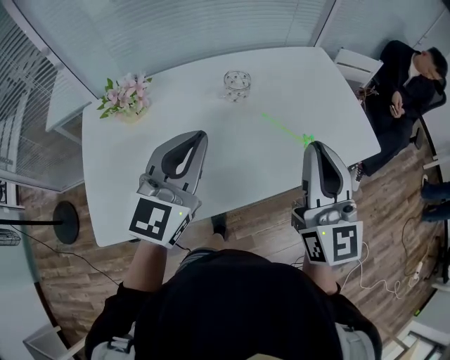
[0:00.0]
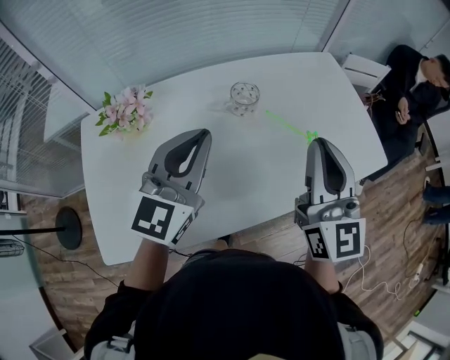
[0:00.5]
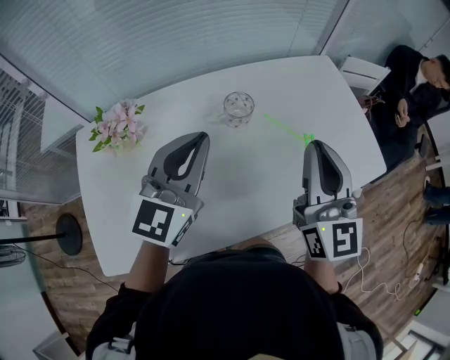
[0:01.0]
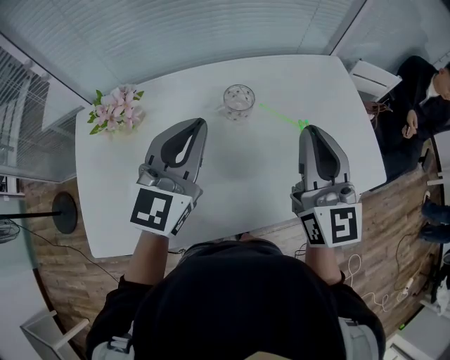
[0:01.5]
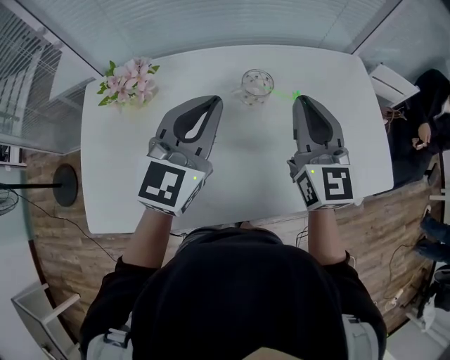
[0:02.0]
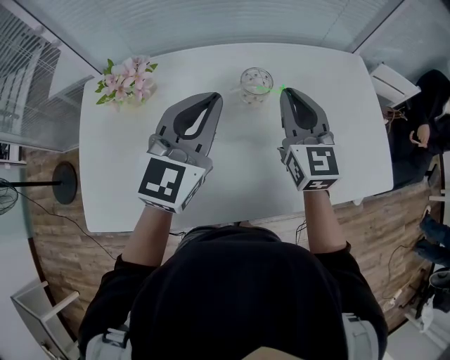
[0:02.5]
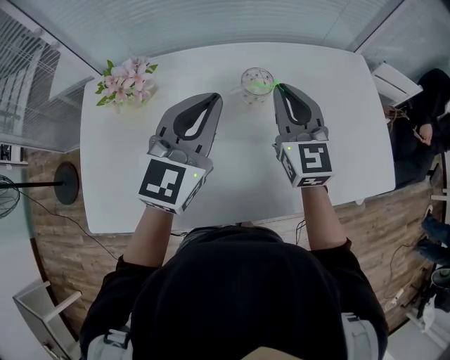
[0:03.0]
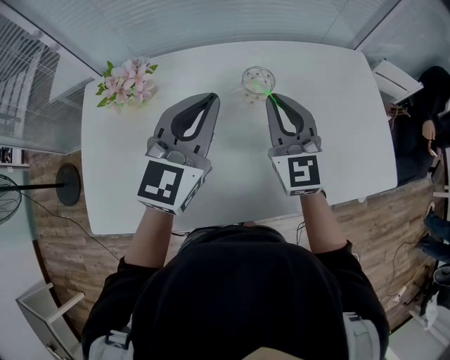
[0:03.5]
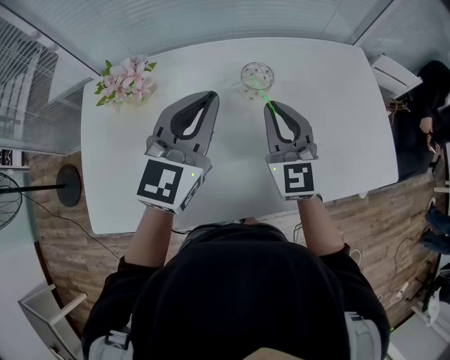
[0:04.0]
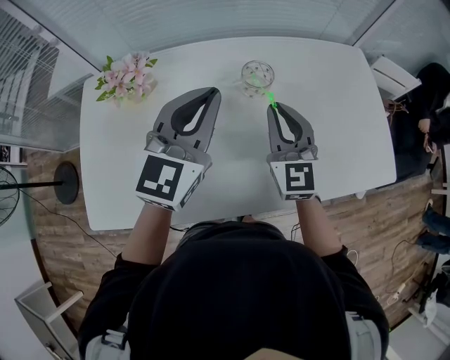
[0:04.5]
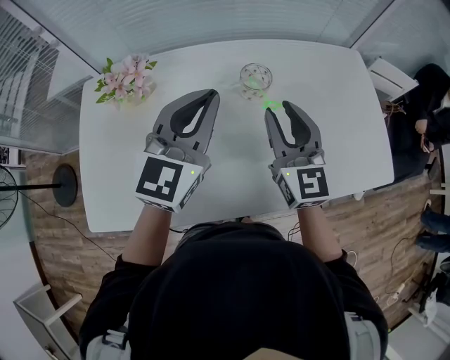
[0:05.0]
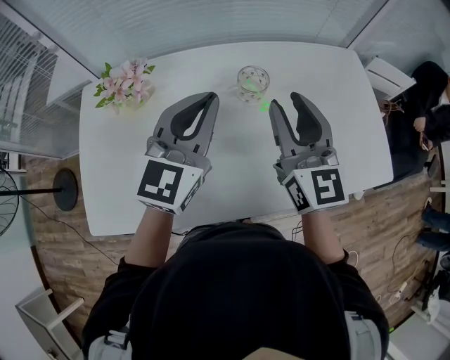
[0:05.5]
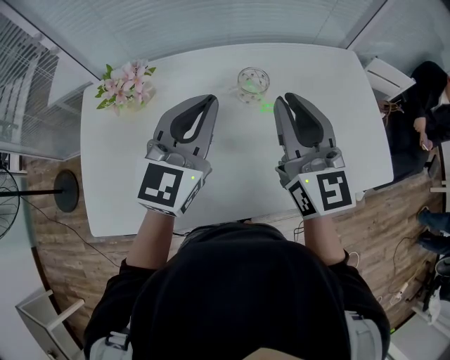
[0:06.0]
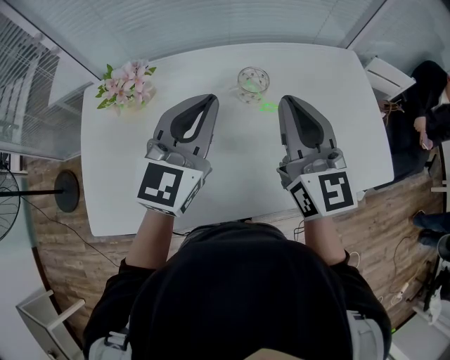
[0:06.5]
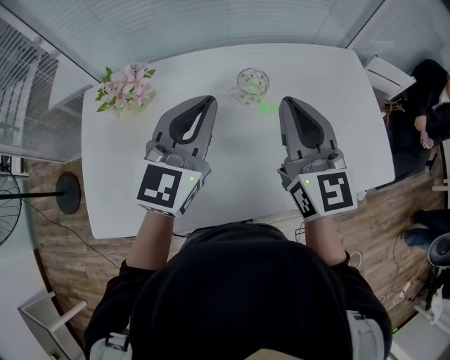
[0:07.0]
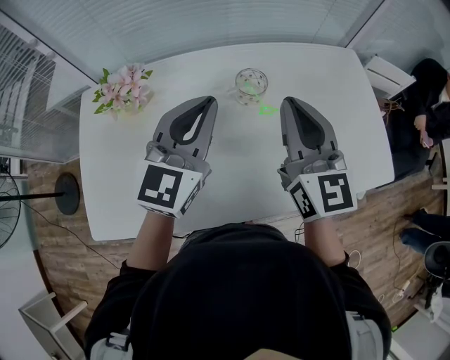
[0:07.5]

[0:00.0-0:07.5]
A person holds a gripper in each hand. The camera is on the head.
0:00.0 to 0:02.0: The right gripper moves forward, some 20 cm. The left gripper moves forward, about 10 cm.
0:02.0 to 0:04.0: The right gripper goes roughly 10 cm downward and to the left.
0:04.0 to 0:05.5: The right gripper heads upward, covering about 10 cm, and opens.
0:05.5 to 0:07.5: The right gripper closes up.

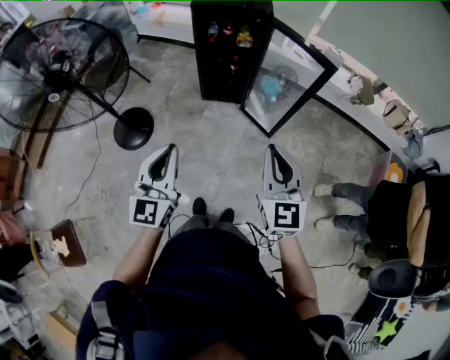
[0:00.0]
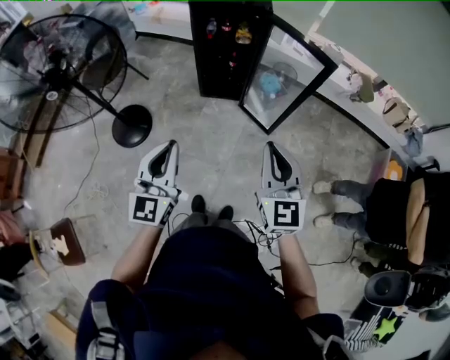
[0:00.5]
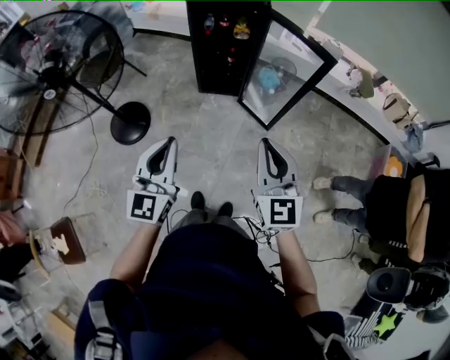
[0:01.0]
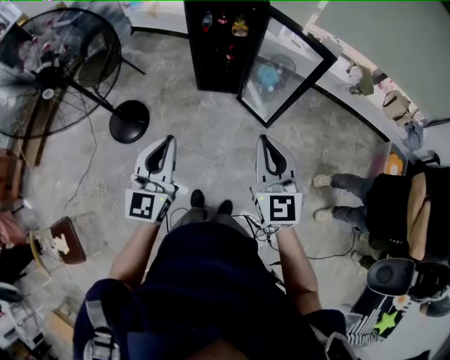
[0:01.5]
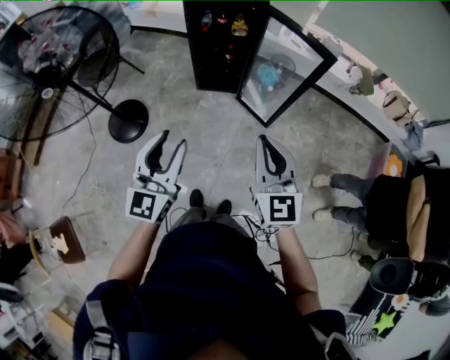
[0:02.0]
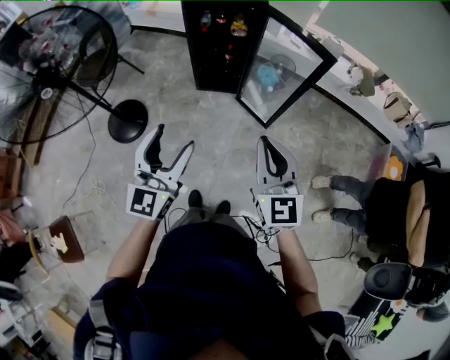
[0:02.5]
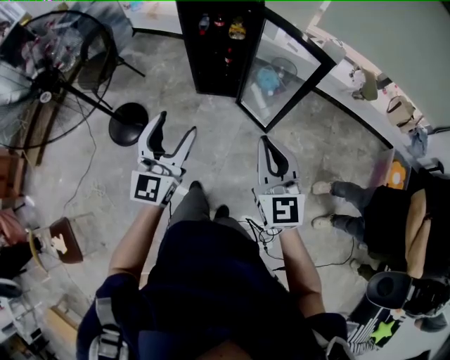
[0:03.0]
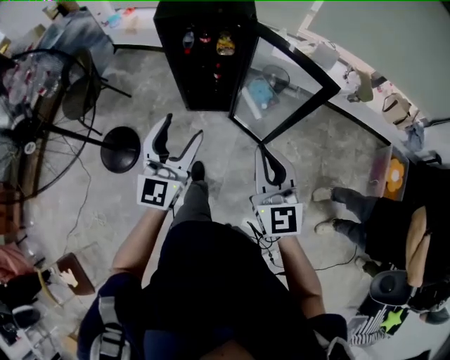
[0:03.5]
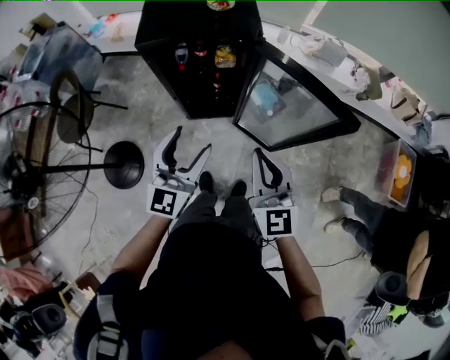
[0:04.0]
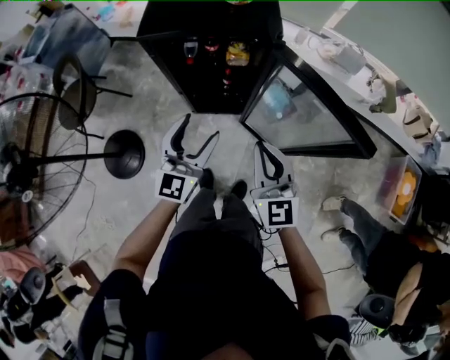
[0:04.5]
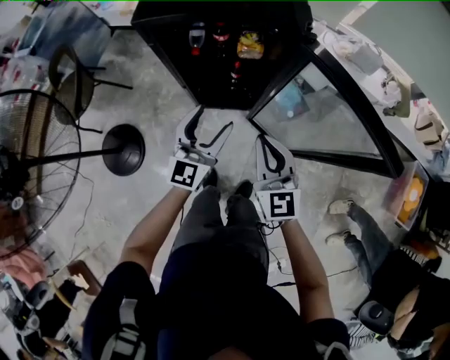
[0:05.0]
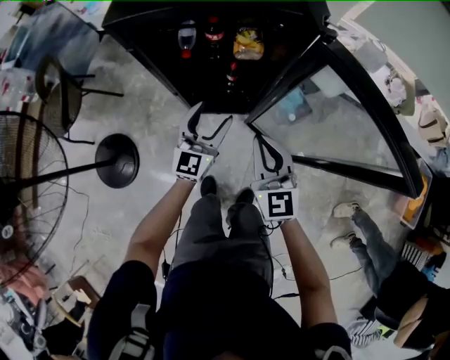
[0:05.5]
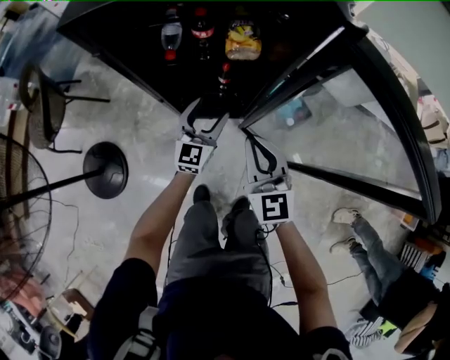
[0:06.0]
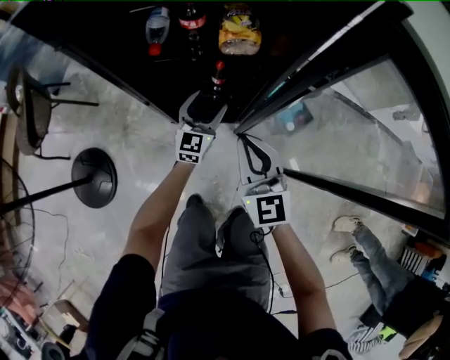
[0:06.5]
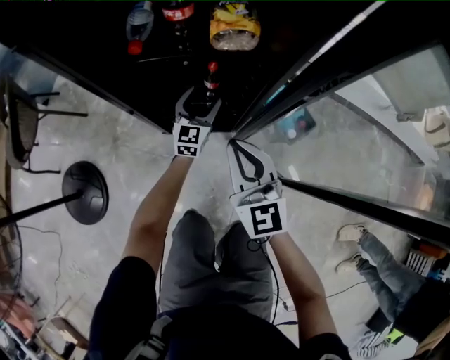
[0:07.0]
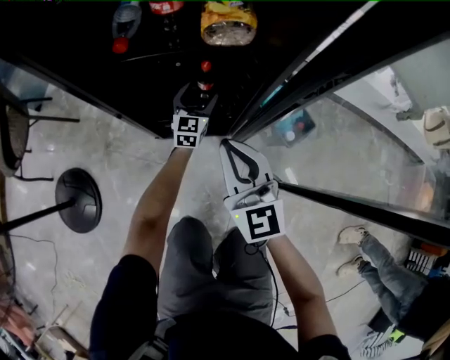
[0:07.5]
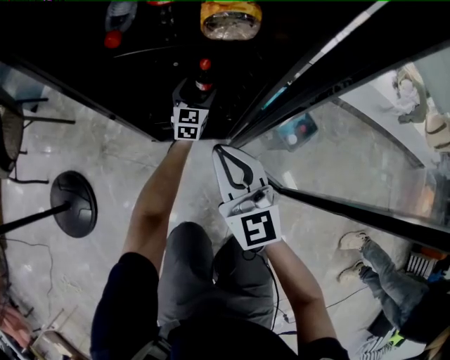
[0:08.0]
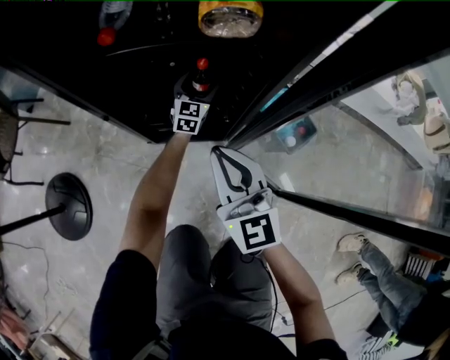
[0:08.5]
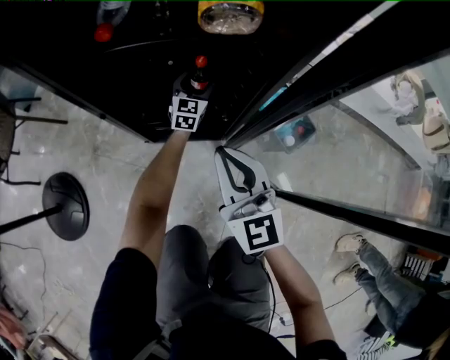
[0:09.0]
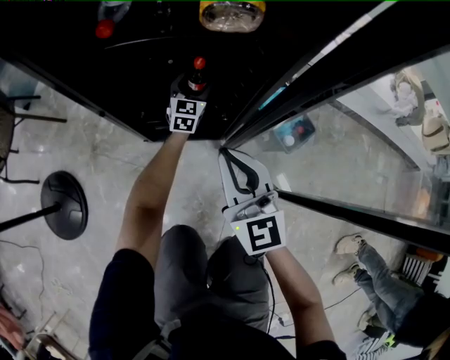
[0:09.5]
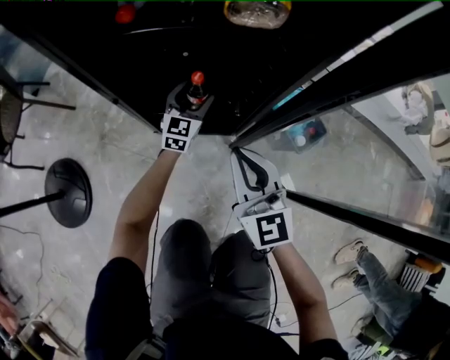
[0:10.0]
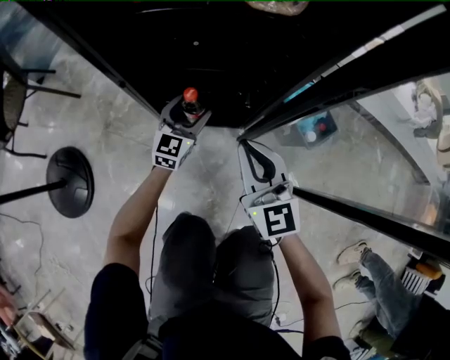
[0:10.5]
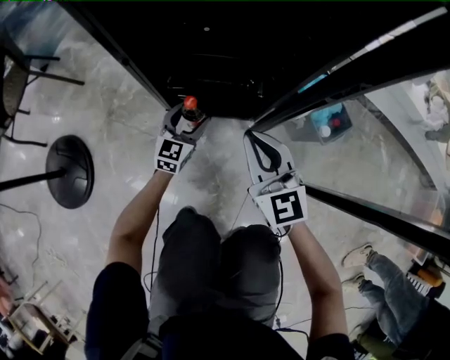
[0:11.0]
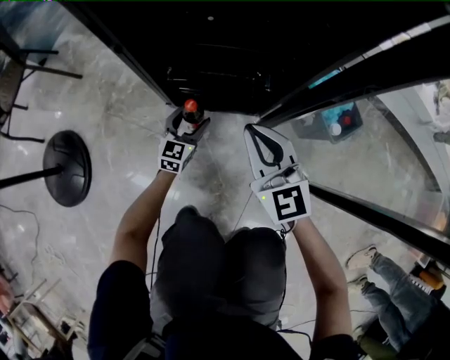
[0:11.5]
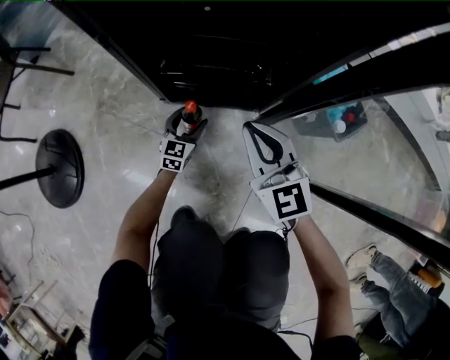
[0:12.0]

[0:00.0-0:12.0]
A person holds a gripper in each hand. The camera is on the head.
0:00.0 to 0:02.0: The grippers stay close to where they were, moving slightly.
0:02.0 to 0:04.0: Both grippers move forward, roughly 40 cm. The left gripper opens up.
0:04.0 to 0:06.0: Both grippers move downward and forward, some 50 cm.
0:06.0 to 0:08.0: The right gripper is displaced downward by some 20 cm; the left gripper shifts some 35 cm downward and forward.
0:08.0 to 0:10.0: The left gripper goes roughly 5 cm backward. Meanwhile the right gripper moves about 5 cm.
0:10.0 to 0:12.0: The right gripper moves downward, roughly 20 cm; the left gripper heads downward and backward, covering some 30 cm.

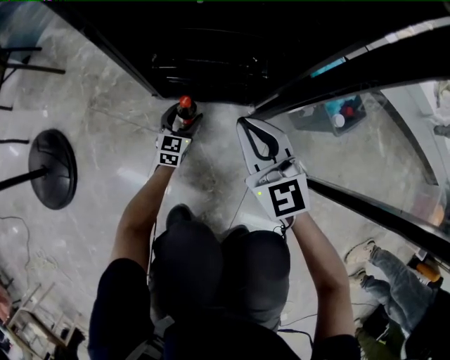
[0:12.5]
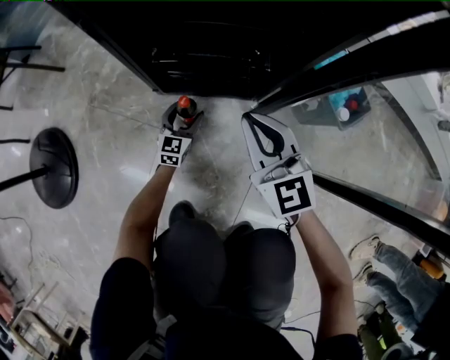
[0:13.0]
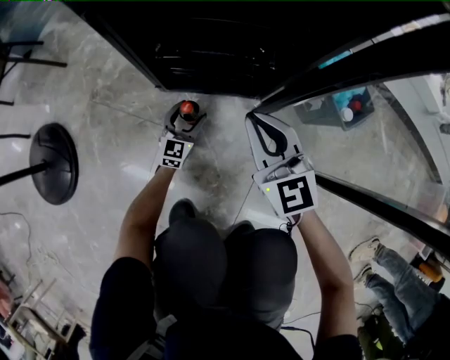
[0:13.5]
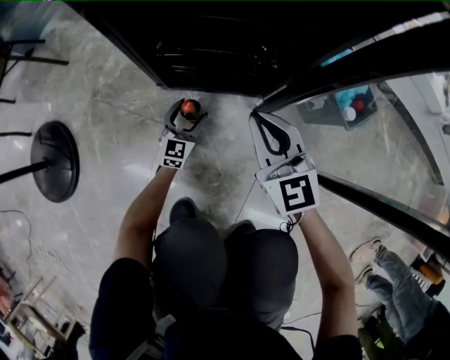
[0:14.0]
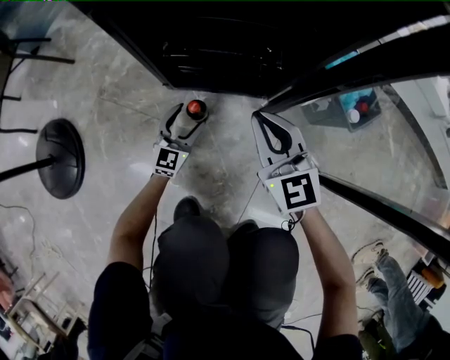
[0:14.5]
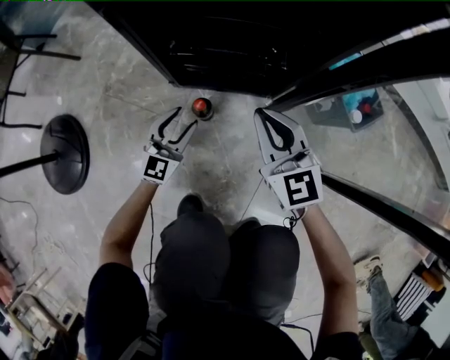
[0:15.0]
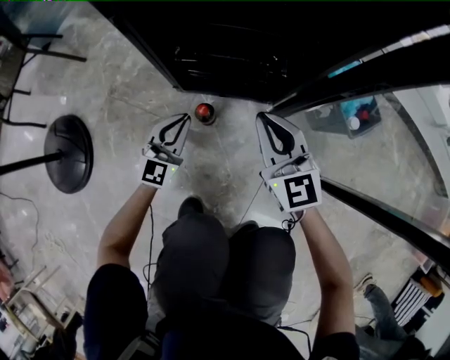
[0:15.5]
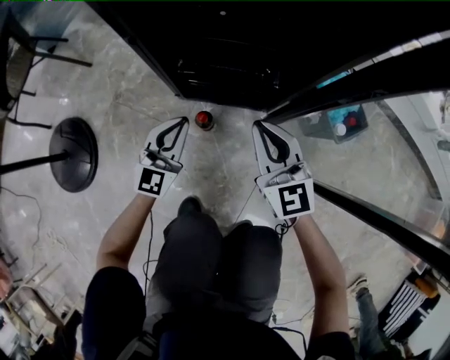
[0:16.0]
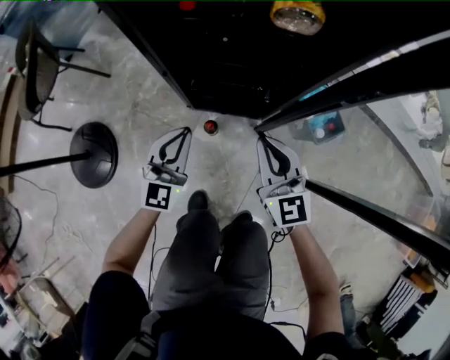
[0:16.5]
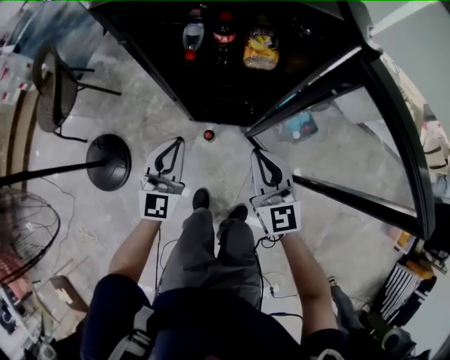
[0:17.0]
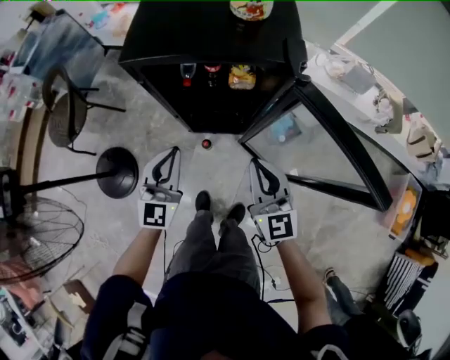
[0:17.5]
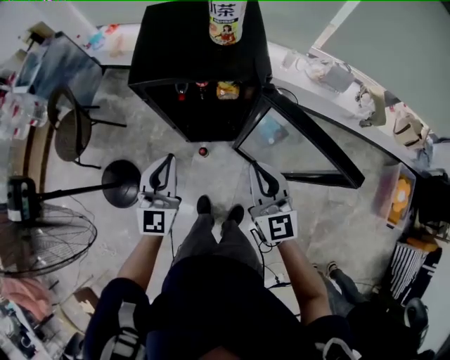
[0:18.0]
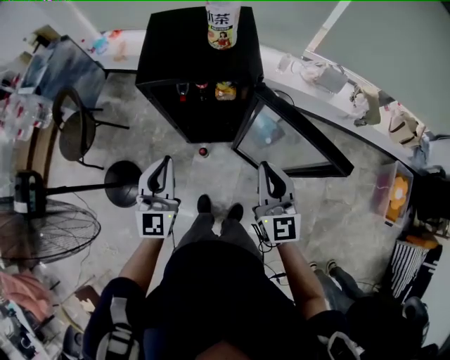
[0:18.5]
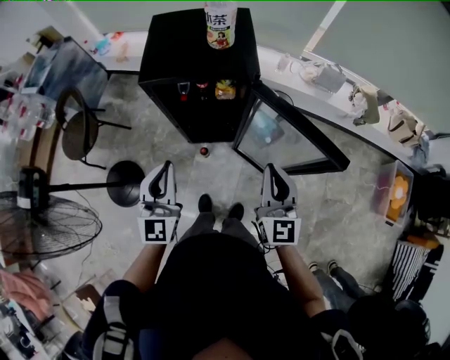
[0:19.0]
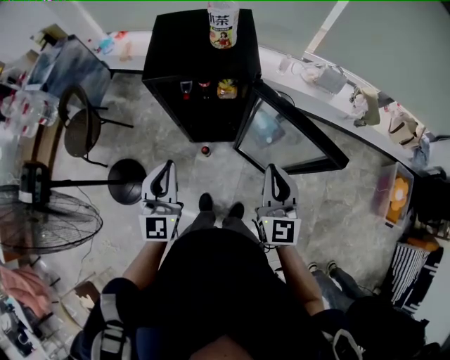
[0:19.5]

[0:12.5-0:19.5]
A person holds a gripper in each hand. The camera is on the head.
0:12.5 to 0:14.5: The left gripper is displaced backward by roughly 5 cm.
0:14.5 to 0:16.0: The left gripper moves upward, some 20 cm, and closes up, while the right gripper goes approximately 10 cm upward.
0:16.0 to 0:17.5: The grippers both shift upward by roughly 60 cm.
0:17.5 to 0:19.5: The left gripper shifts about 25 cm upward and backward. Meanwhile the right gripper heads upward, backward and to the right, covering approximately 20 cm.
